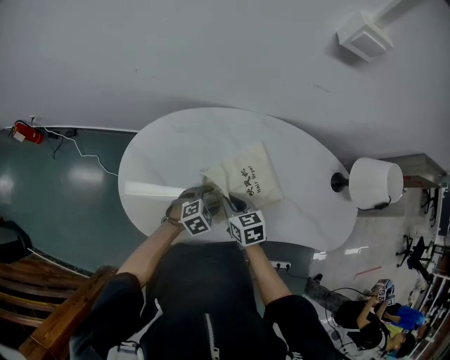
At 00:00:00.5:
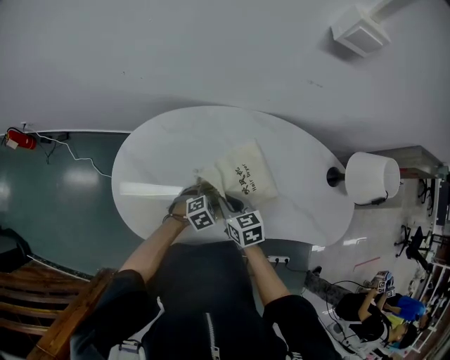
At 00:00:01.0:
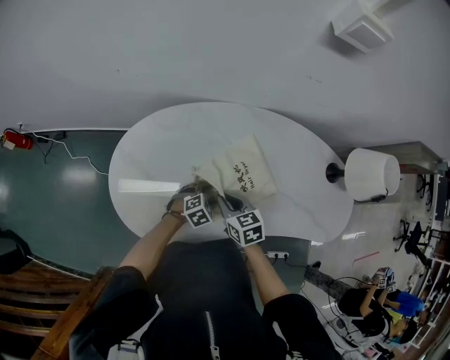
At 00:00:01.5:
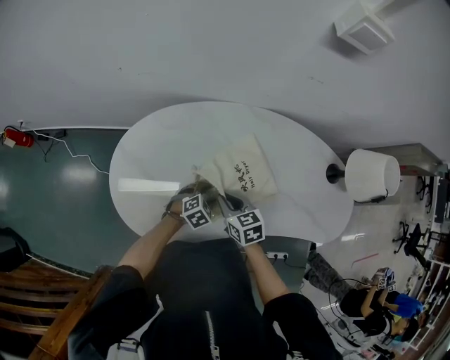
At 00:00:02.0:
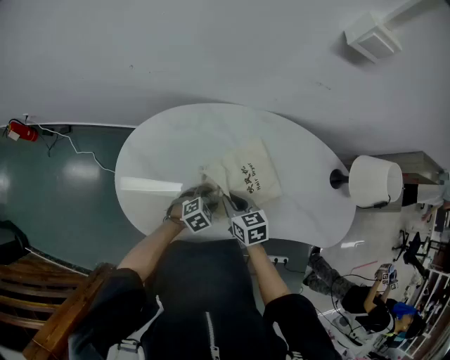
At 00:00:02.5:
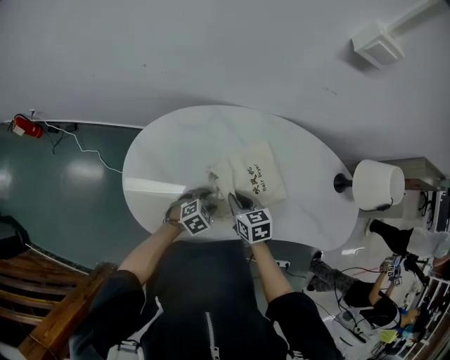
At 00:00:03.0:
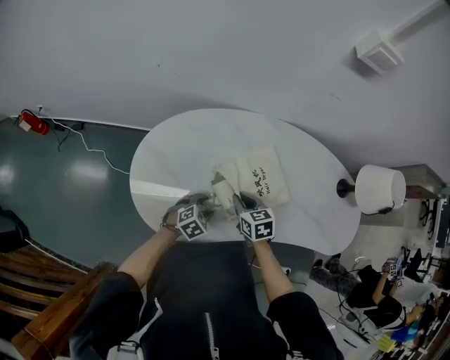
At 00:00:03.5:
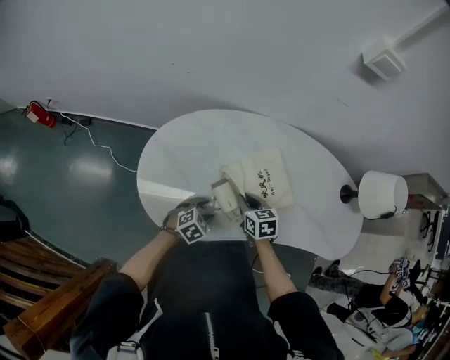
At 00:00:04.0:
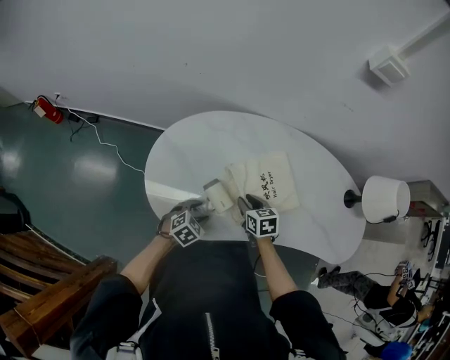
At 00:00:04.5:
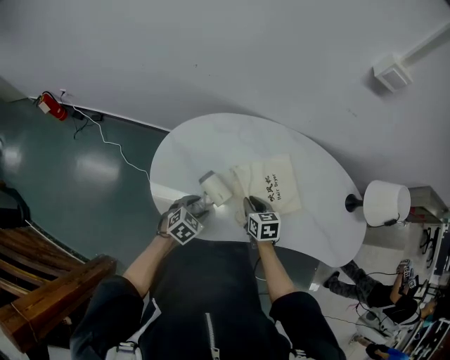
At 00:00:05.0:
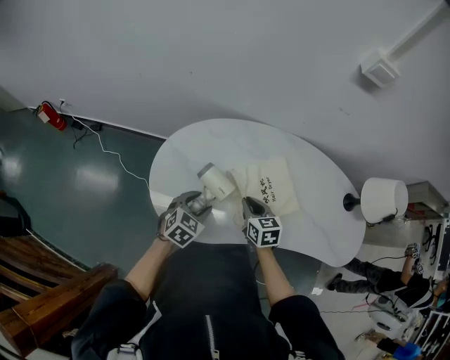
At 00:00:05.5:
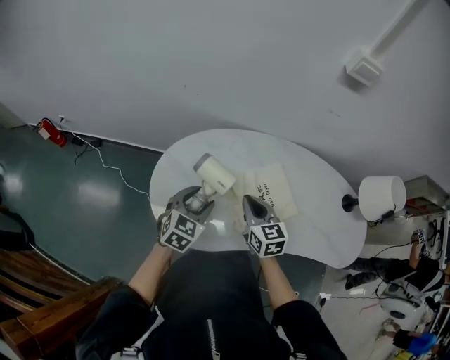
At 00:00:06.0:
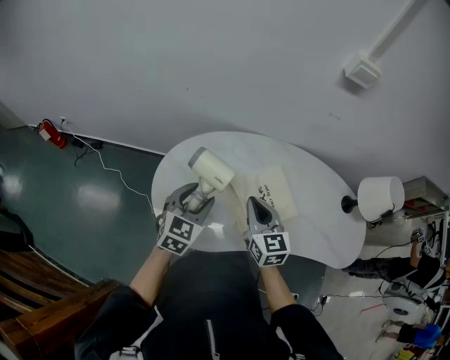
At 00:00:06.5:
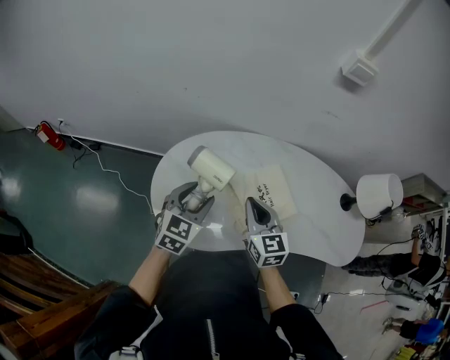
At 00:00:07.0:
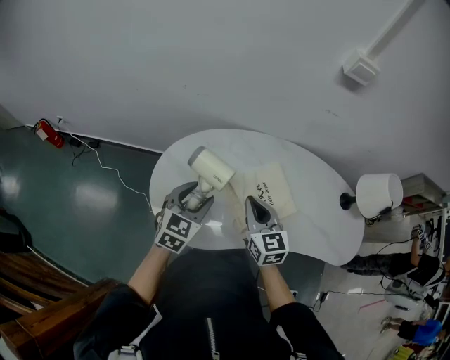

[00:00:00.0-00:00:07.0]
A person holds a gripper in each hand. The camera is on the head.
00:00:00.0 to 00:00:02.0: The grippers stay close to where they were, moving slightly.
00:00:02.0 to 00:00:03.5: The left gripper goes some 10 cm backward and to the left.
00:00:03.5 to 00:00:05.0: The left gripper travels upward and to the left by approximately 10 cm, and rotates approximately 20 degrees.
00:00:05.0 to 00:00:07.0: Both grippers move upward, approximately 15 cm. The right gripper changes its angle by roughly 20 degrees.

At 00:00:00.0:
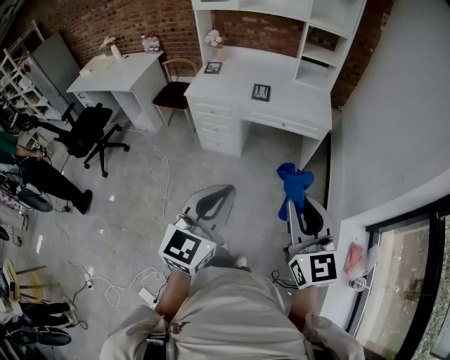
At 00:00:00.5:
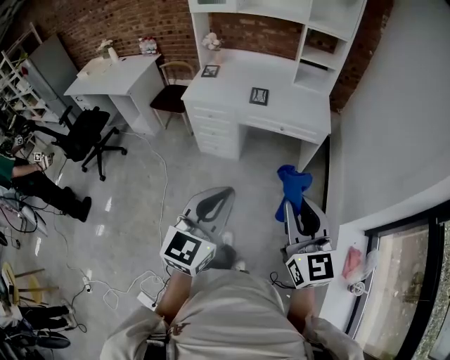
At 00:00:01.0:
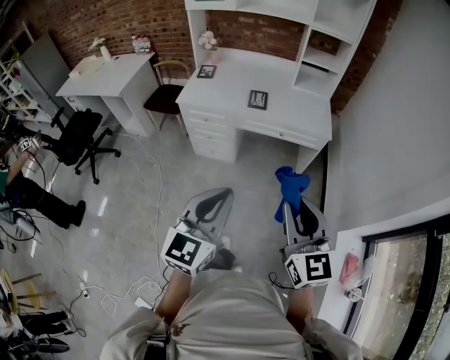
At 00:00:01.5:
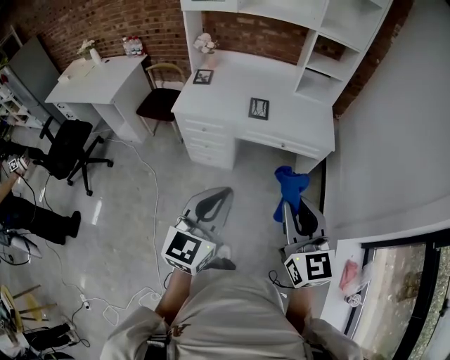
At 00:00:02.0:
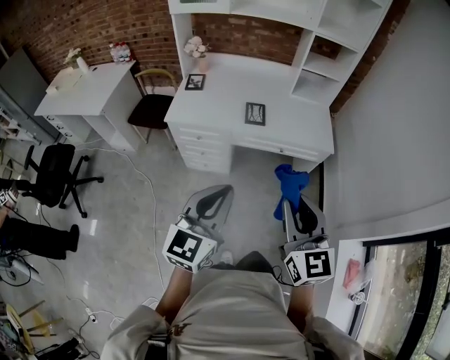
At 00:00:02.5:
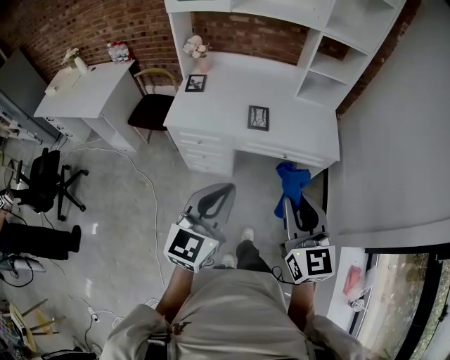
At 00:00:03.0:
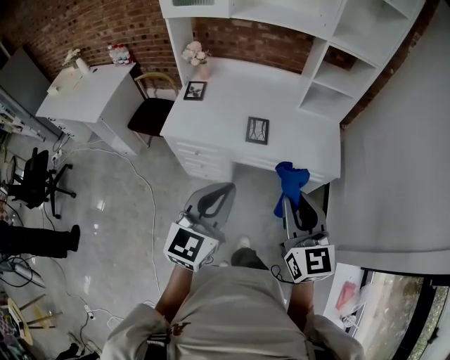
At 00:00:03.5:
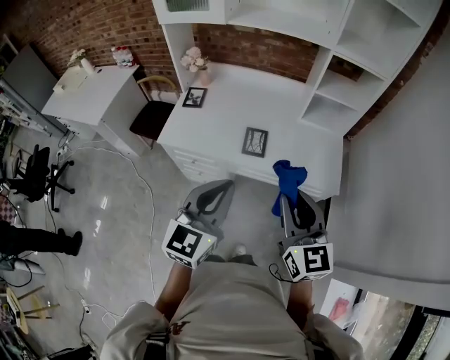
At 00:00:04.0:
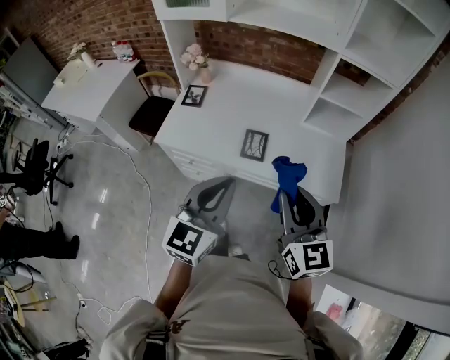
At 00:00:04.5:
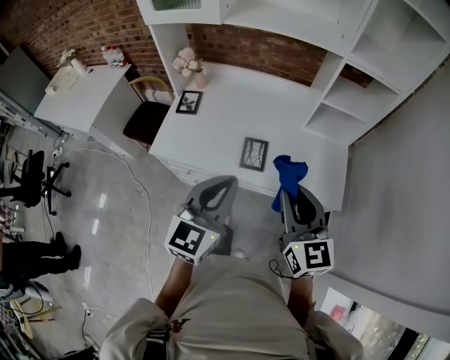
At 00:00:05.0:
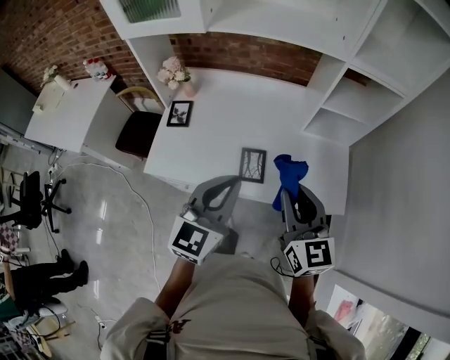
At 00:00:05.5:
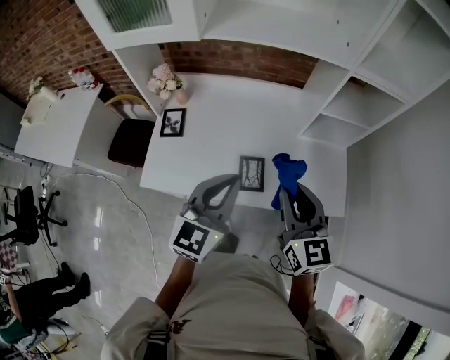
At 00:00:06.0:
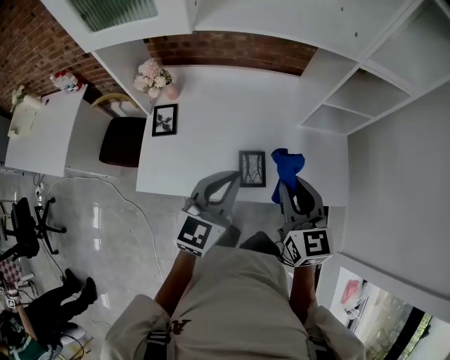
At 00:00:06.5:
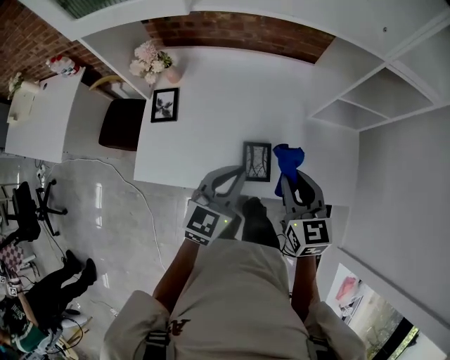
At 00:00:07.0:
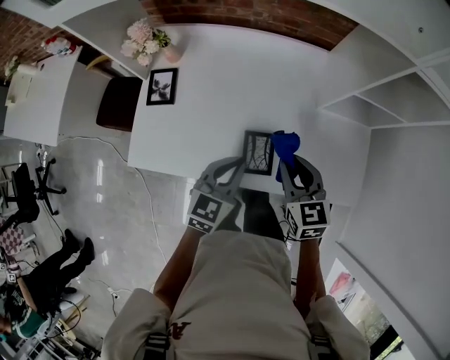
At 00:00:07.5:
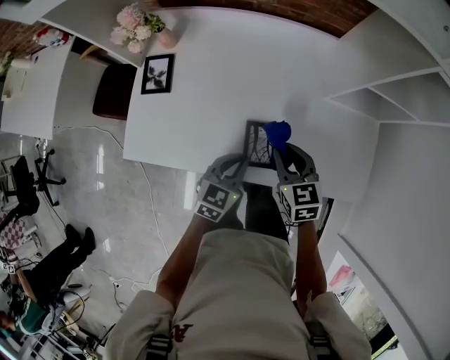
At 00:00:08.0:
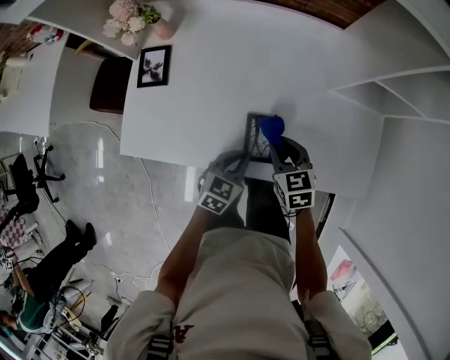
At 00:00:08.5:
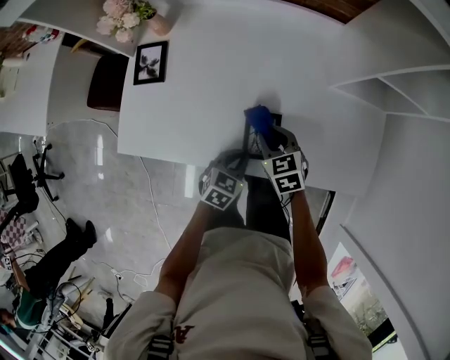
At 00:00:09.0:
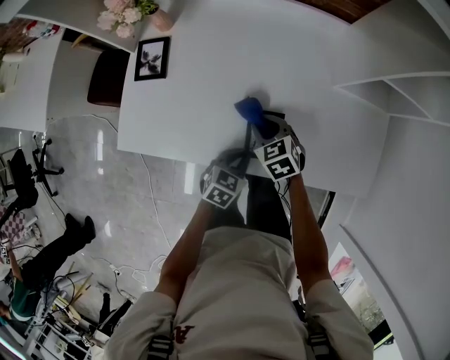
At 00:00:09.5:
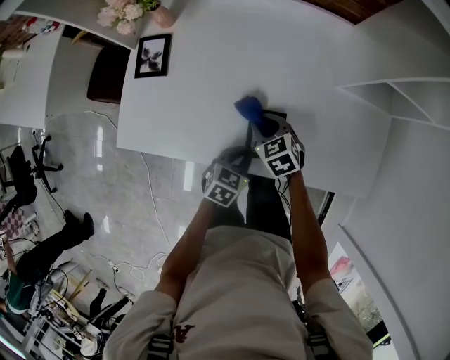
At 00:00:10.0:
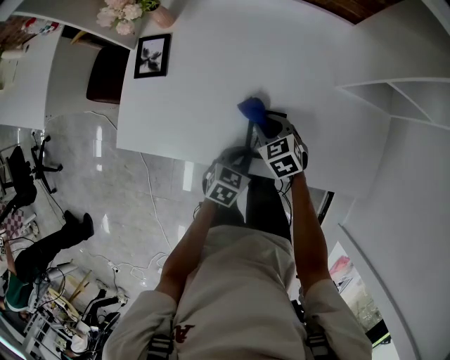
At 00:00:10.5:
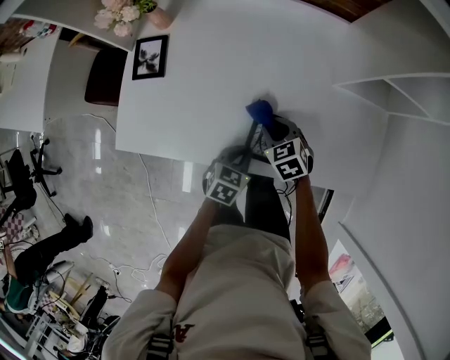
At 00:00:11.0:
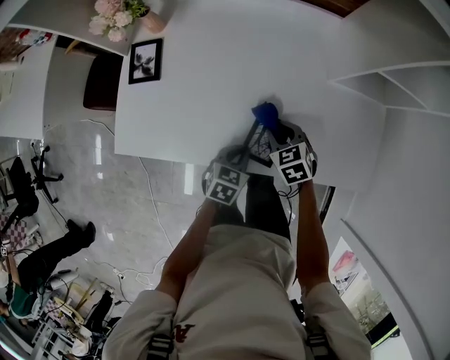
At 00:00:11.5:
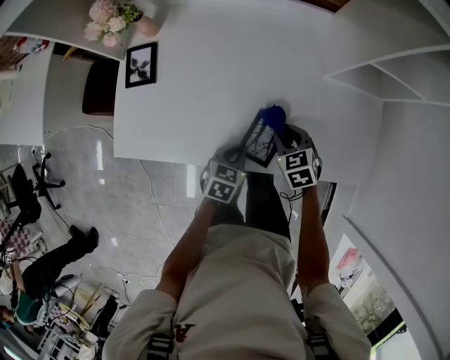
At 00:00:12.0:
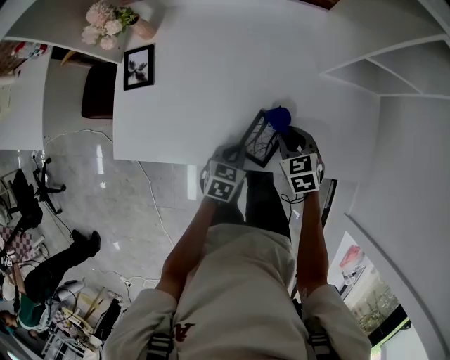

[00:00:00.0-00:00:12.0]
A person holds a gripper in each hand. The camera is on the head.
00:00:00.0 to 00:00:02.0: The two grippers go roughly 25 cm forward.
00:00:02.0 to 00:00:04.0: The two grippers go some 25 cm forward.
00:00:04.0 to 00:00:06.0: The two grippers go roughly 20 cm forward.
00:00:06.0 to 00:00:08.0: The two grippers go approximately 30 cm downward. The right gripper turns by some 30 degrees. The left gripper rotates approximately 30 degrees.
00:00:08.0 to 00:00:10.0: The right gripper is displaced downward and to the left by roughly 10 cm.
00:00:10.0 to 00:00:12.0: The right gripper heads to the right, covering roughly 10 cm.

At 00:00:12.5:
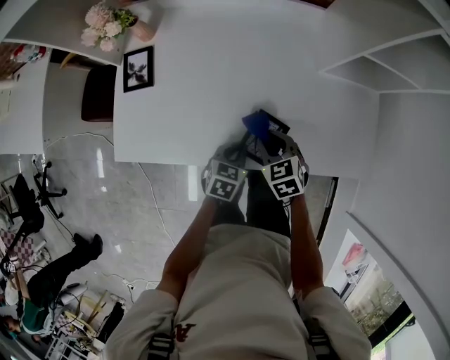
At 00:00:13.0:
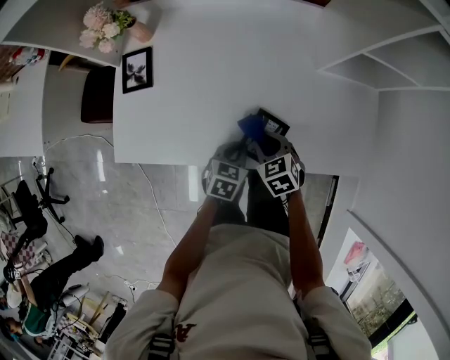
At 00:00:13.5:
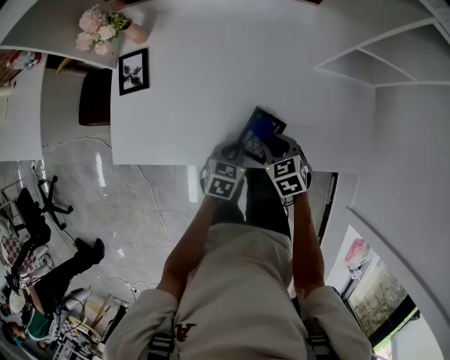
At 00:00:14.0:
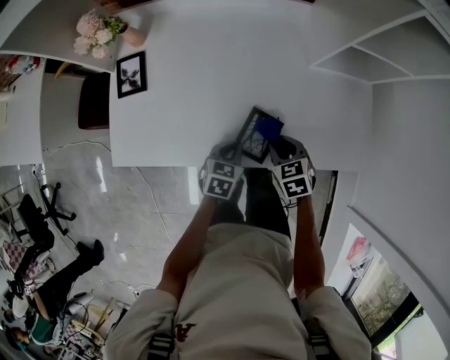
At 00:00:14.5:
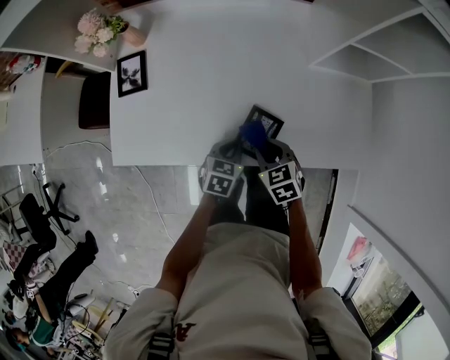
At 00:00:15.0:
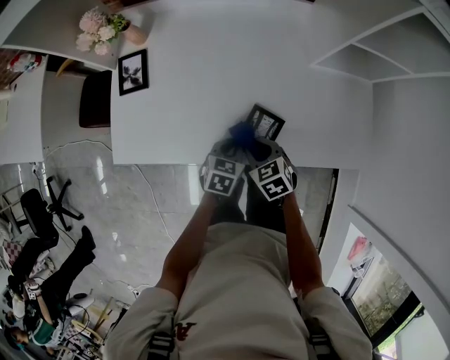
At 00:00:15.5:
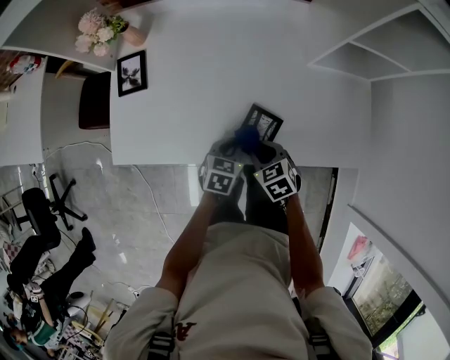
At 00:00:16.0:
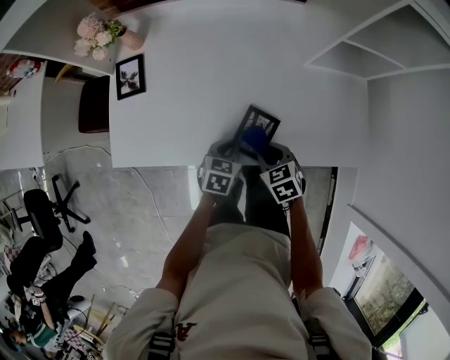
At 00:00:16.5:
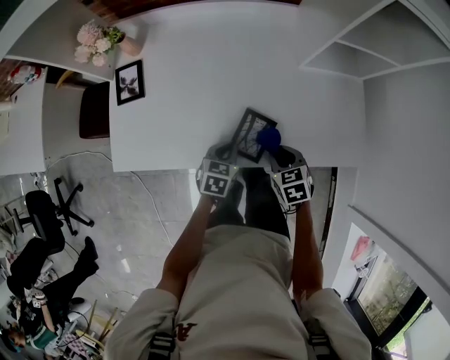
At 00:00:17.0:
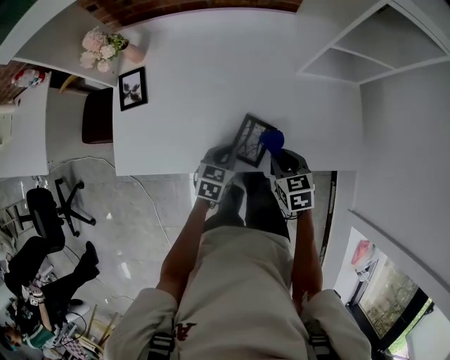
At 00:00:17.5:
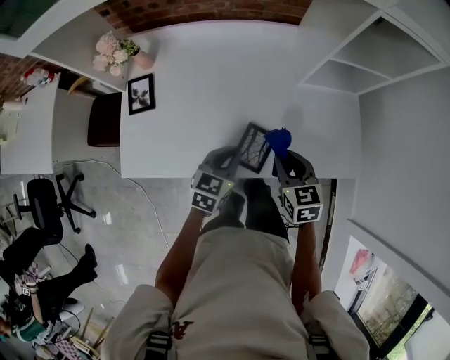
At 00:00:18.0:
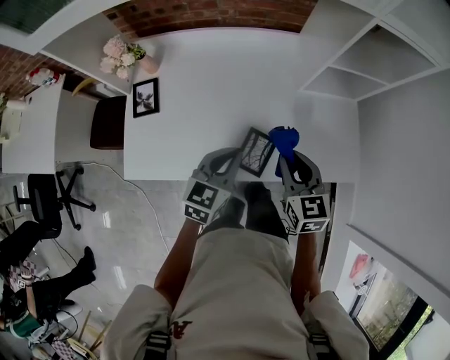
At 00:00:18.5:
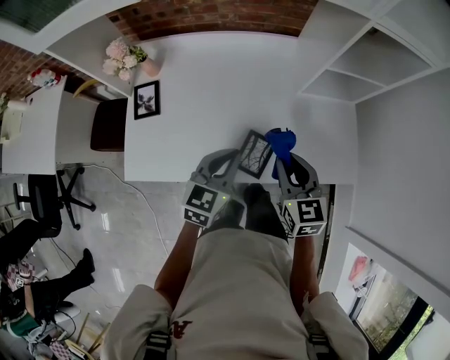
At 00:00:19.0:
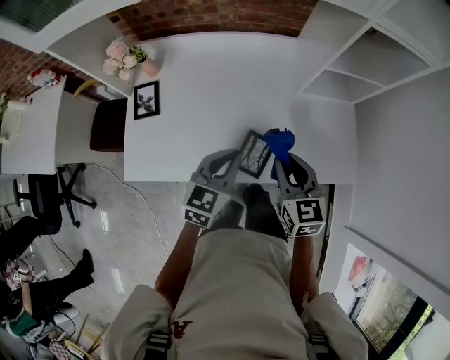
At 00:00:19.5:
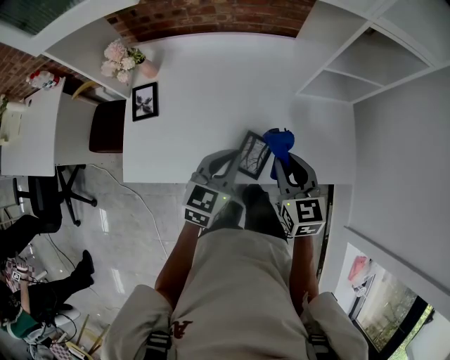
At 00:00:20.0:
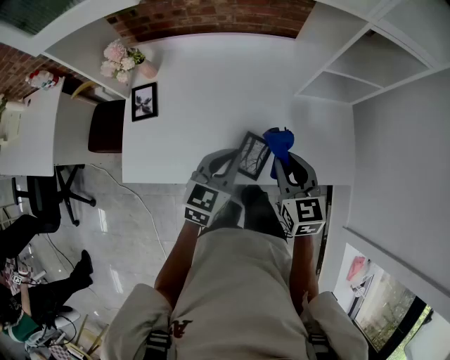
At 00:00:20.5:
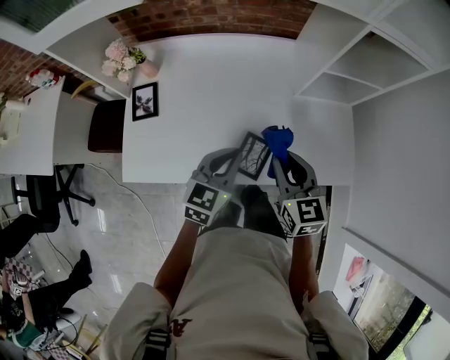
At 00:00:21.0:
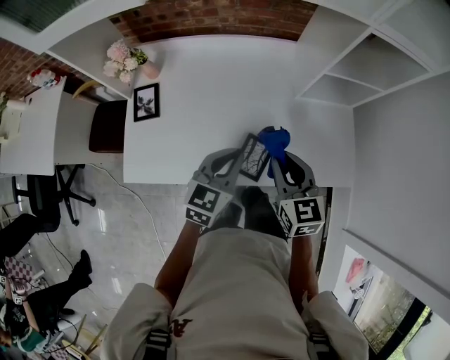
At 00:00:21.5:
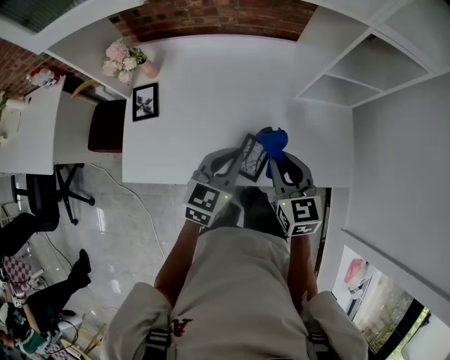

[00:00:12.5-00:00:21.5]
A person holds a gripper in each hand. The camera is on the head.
00:00:12.5 to 00:00:14.5: The grippers make only small movements.
00:00:14.5 to 00:00:17.0: The right gripper goes about 5 cm to the right.
00:00:17.0 to 00:00:19.5: Both grippers travel together upward, roughly 15 cm. The right gripper swivels about 20 degrees.
00:00:19.5 to 00:00:21.5: There are only small adjustments of the grippers.
